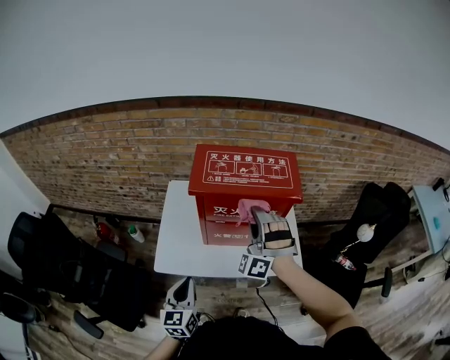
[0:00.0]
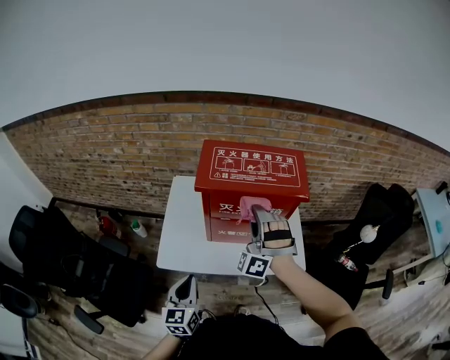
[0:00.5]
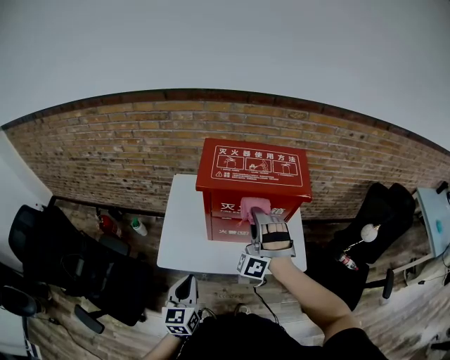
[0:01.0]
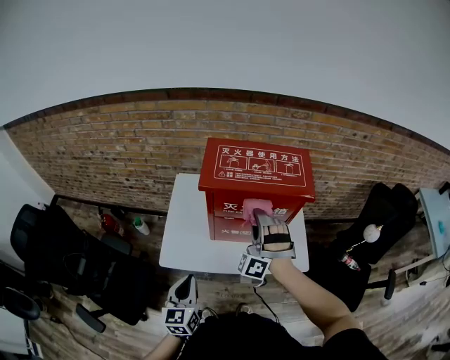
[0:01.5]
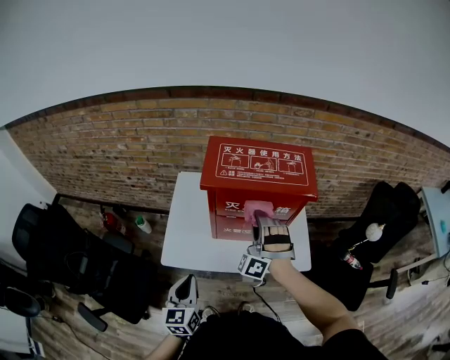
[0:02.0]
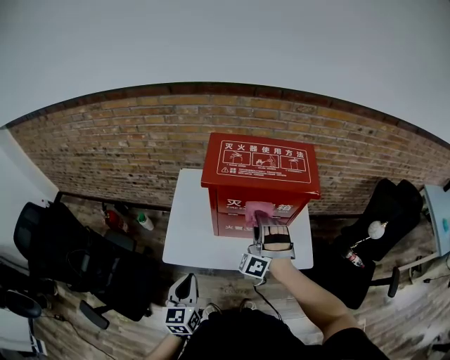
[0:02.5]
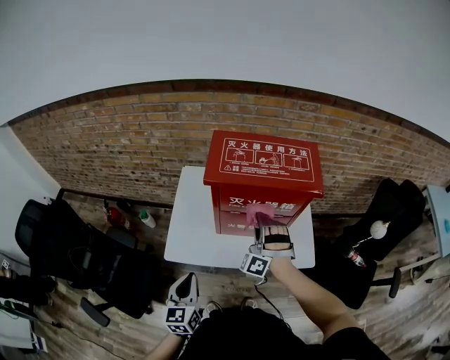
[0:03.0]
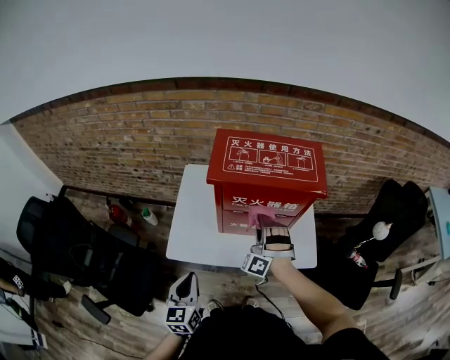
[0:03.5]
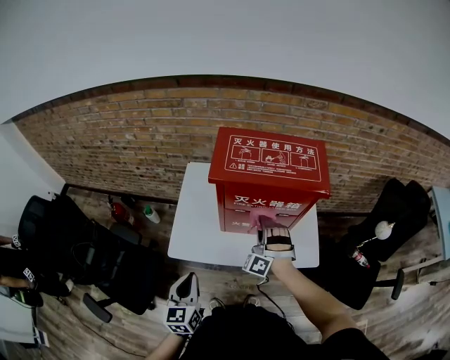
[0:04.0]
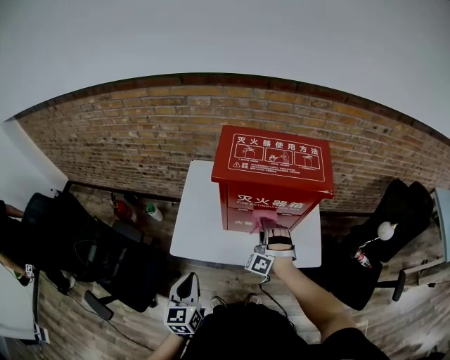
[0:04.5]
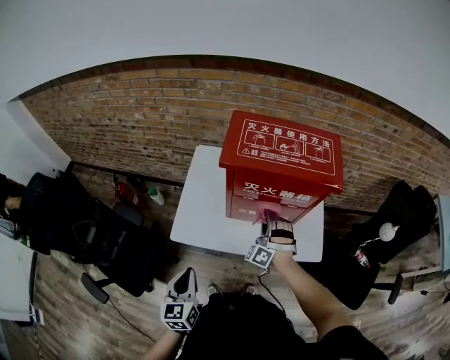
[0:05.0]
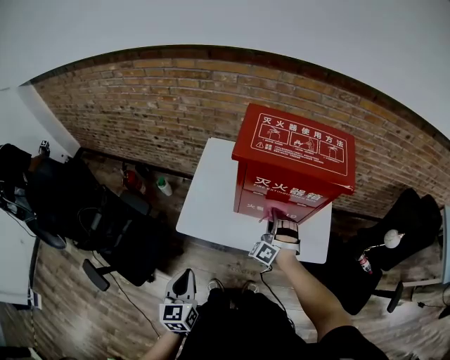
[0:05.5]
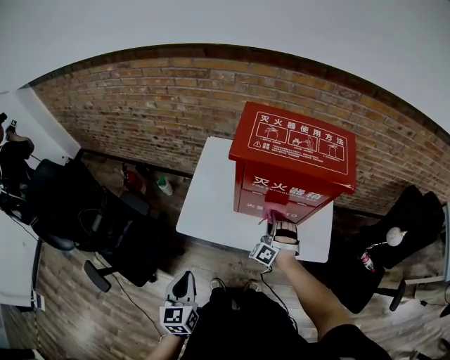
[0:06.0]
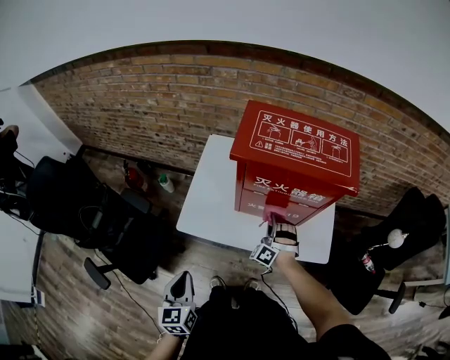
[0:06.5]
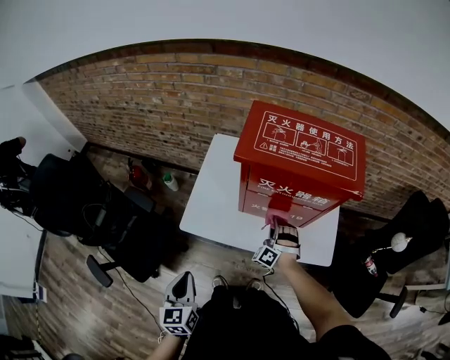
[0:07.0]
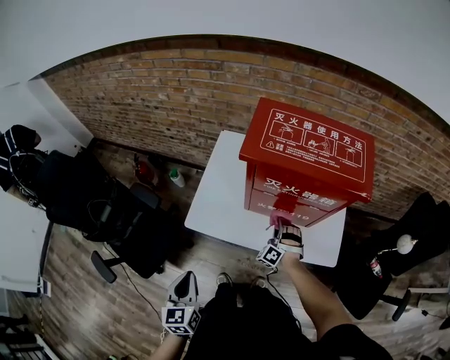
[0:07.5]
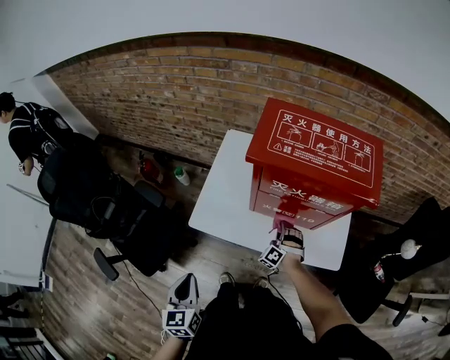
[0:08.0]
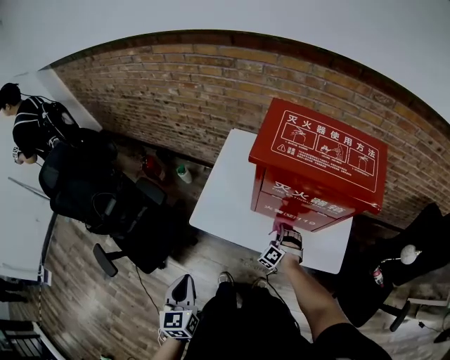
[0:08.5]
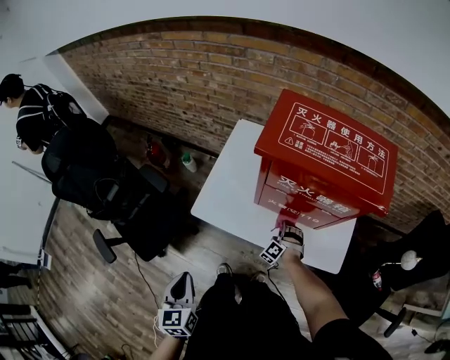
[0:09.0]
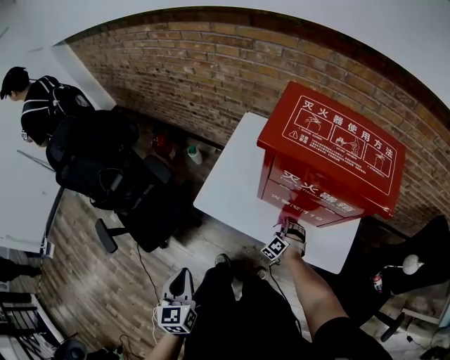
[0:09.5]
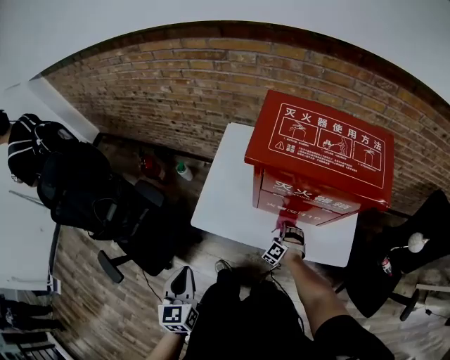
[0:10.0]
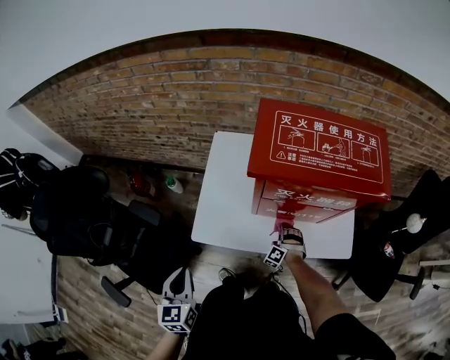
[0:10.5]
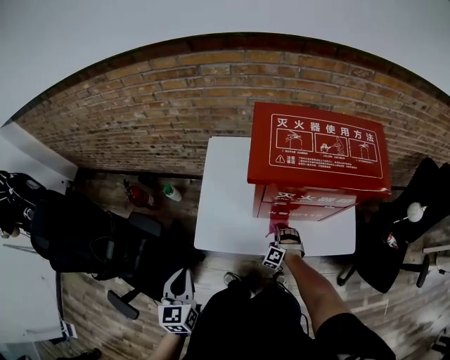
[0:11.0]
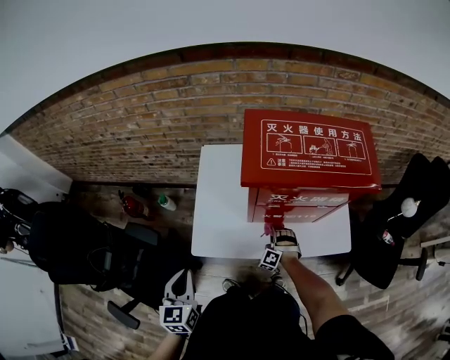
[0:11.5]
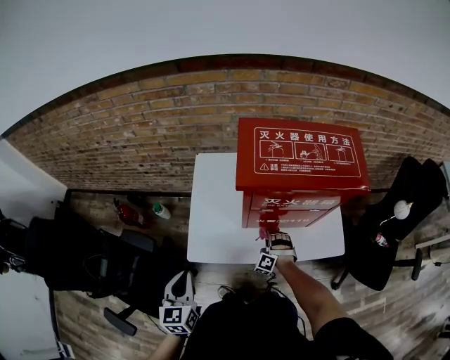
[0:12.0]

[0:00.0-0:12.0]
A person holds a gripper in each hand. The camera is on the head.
0:04.0 to 0:06.0: The left gripper moves roughly 5 cm.
0:10.0 to 0:12.0: The left gripper changes place by some 10 cm.

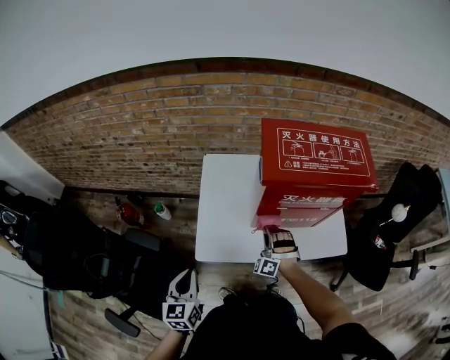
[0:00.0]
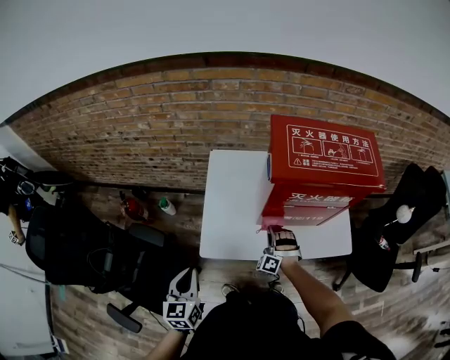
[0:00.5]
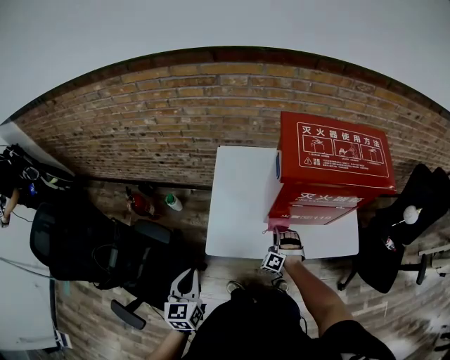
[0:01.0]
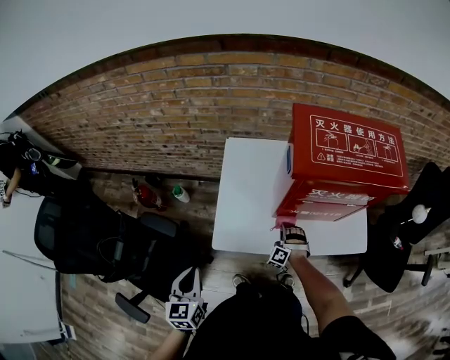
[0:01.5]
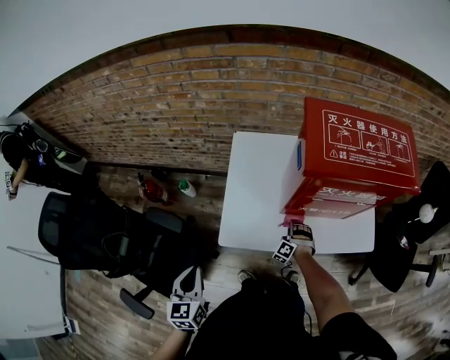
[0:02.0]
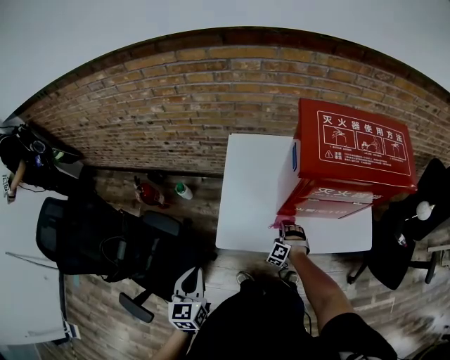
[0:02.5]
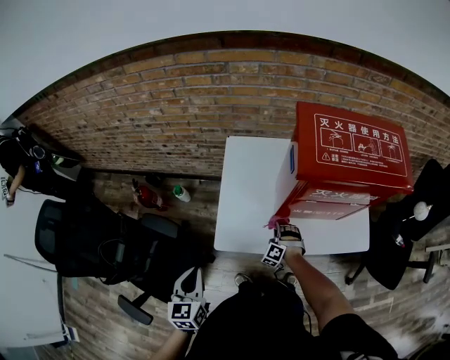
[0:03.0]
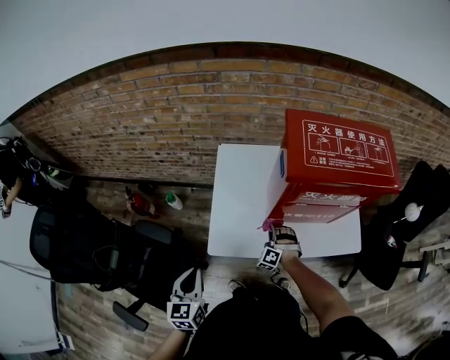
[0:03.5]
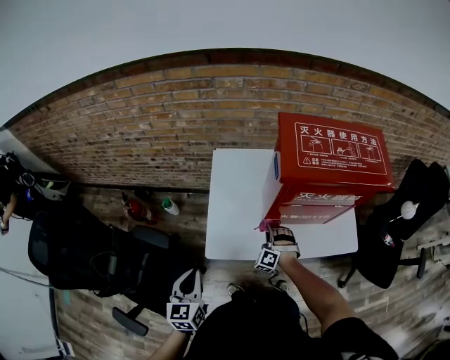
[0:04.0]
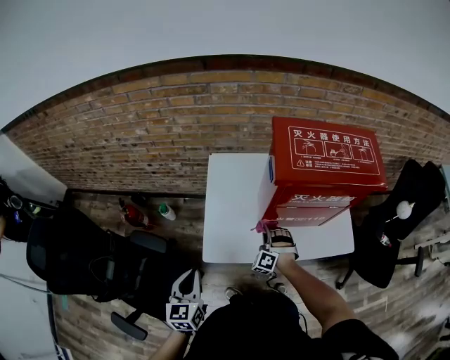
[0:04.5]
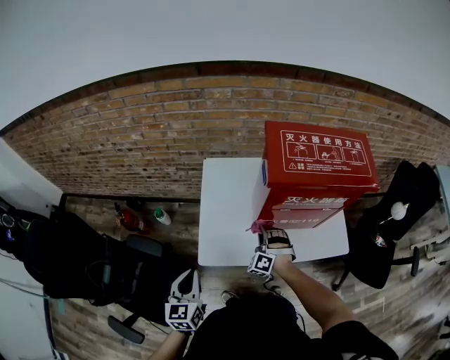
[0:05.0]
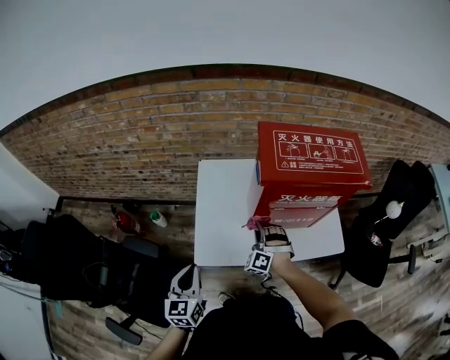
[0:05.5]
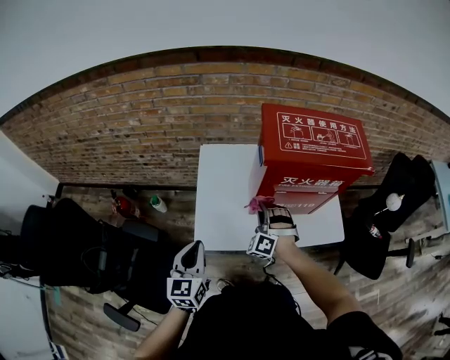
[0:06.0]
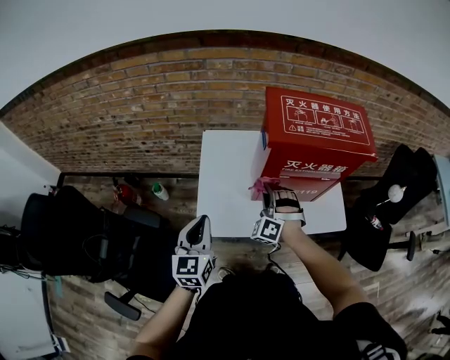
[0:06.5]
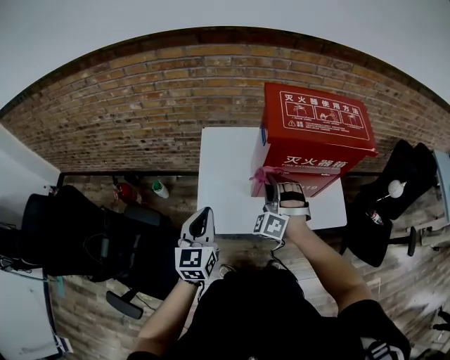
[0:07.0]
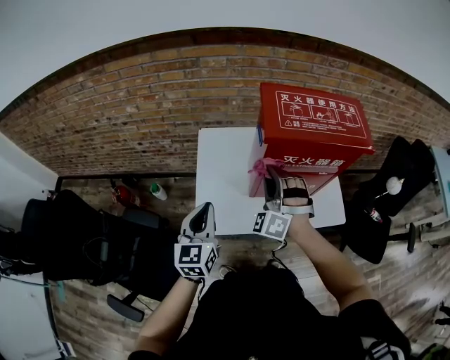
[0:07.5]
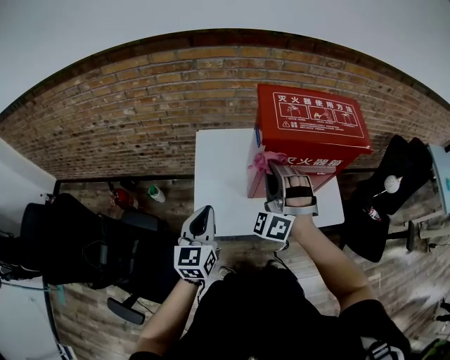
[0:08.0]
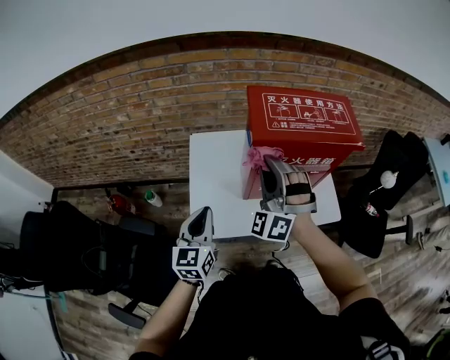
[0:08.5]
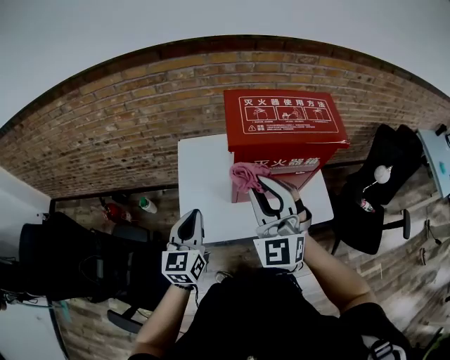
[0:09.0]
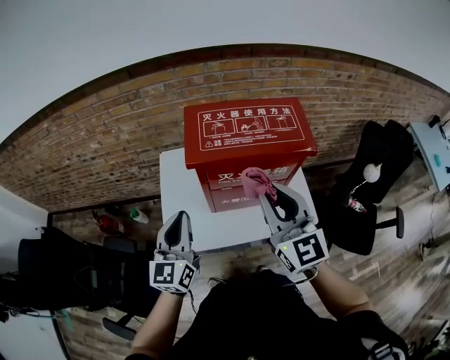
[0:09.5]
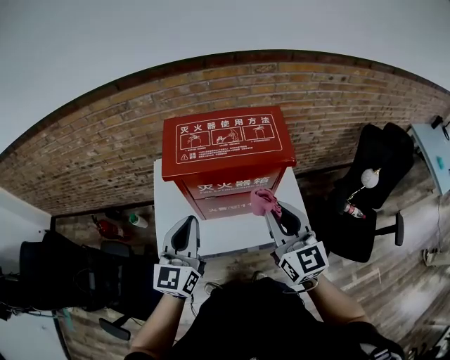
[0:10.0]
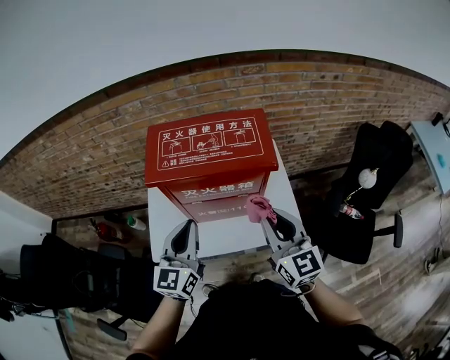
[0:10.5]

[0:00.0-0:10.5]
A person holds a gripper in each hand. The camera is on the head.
0:00.0 to 0:02.0: The left gripper shifts by about 5 cm.
0:04.0 to 0:06.5: The left gripper moves about 10 cm.
0:08.5 to 0:10.5: The left gripper shifts by roughly 25 cm.

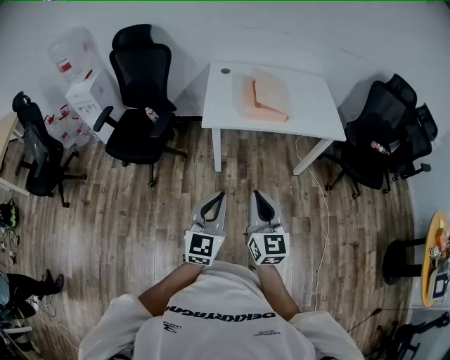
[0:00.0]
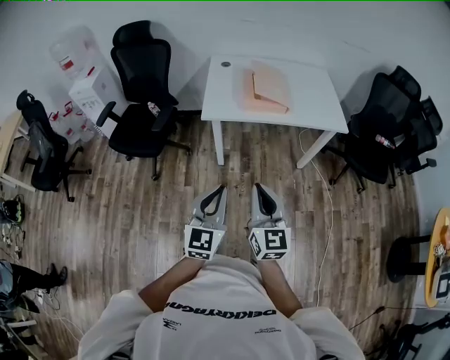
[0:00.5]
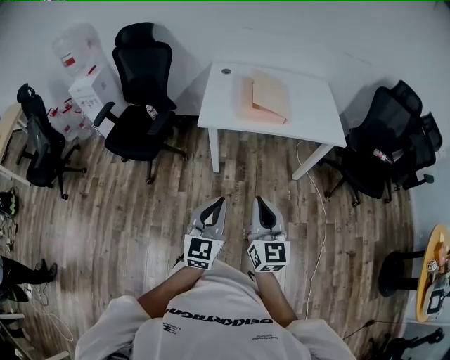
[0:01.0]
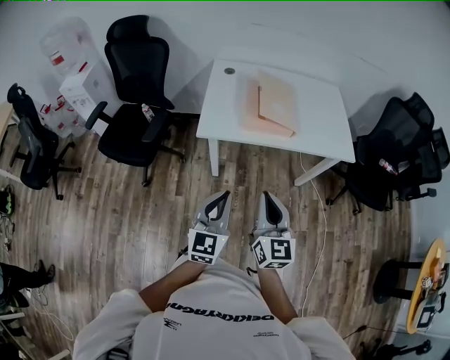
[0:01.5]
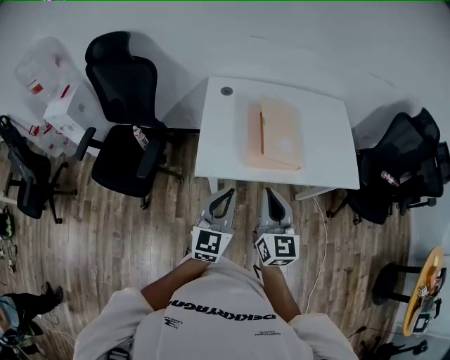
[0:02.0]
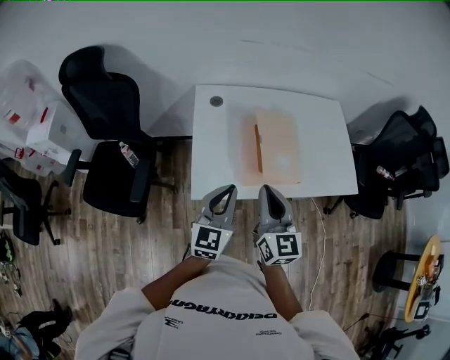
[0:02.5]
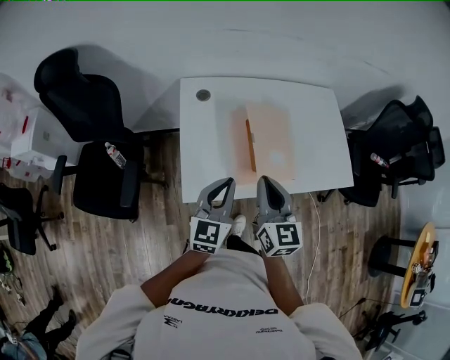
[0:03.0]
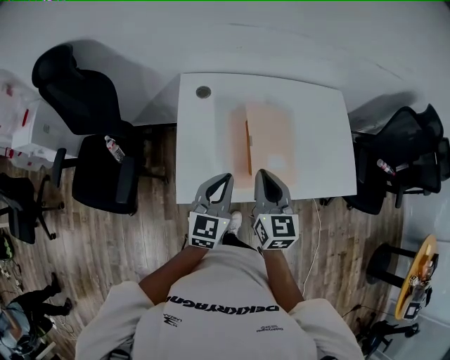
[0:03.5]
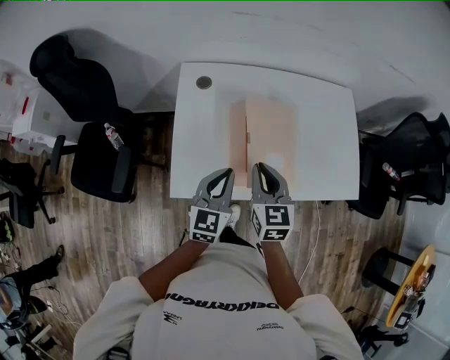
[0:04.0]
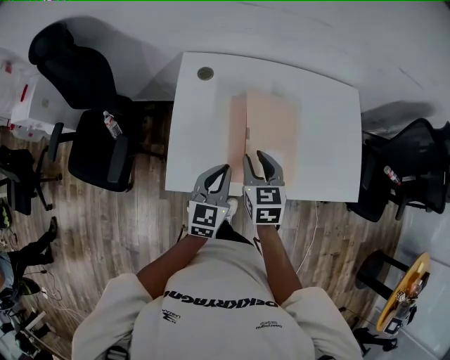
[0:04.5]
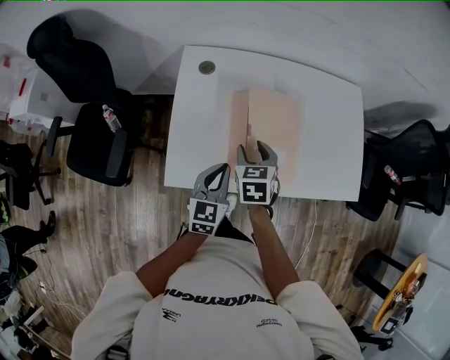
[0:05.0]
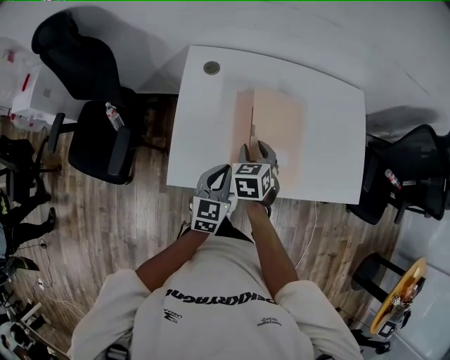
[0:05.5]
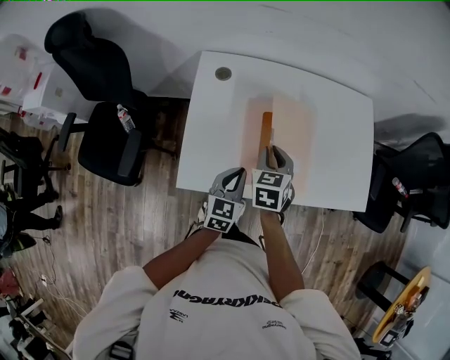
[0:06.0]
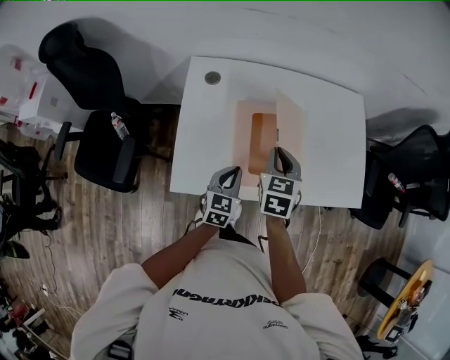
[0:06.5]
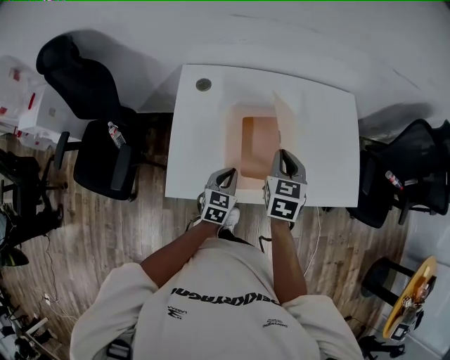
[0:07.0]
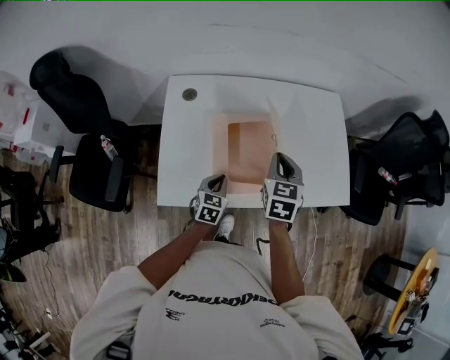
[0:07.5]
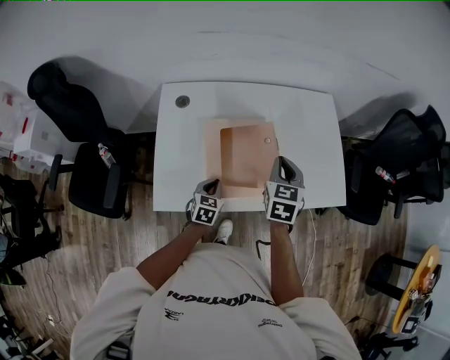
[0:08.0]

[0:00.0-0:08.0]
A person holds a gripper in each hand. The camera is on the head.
0:00.0 to 0:02.0: The grippers both shift forward by approximately 35 cm.
0:02.0 to 0:04.0: The left gripper heads forward, covering approximately 25 cm; the right gripper shifts approximately 25 cm forward and downward, and turns by some 20 degrees.
0:04.0 to 0:06.0: The left gripper moves downward, approximately 10 cm. Meanwhile the right gripper is displaced downward and forward by approximately 10 cm, rotates some 20 degrees, and opens, then closes once more.
0:06.0 to 0:08.0: The left gripper goes roughly 10 cm downward; the right gripper travels to the right and upward by approximately 15 cm.
